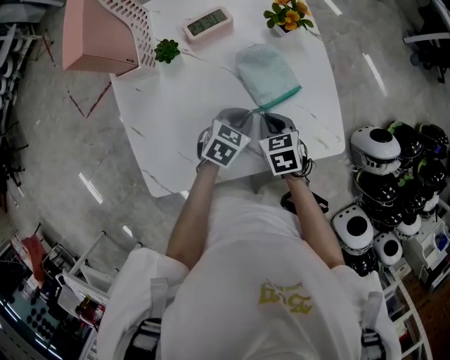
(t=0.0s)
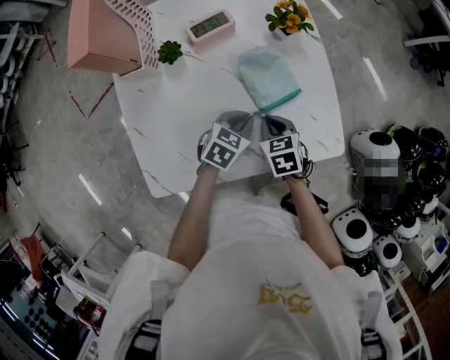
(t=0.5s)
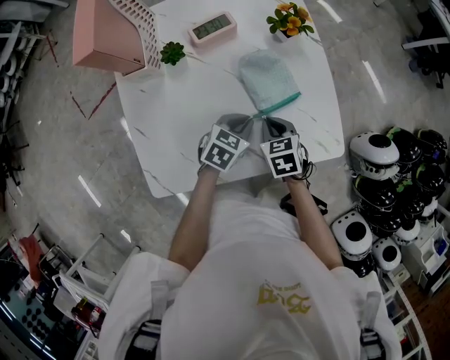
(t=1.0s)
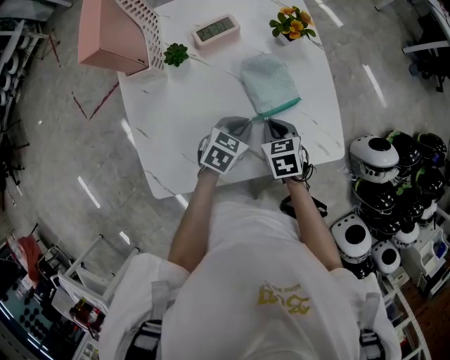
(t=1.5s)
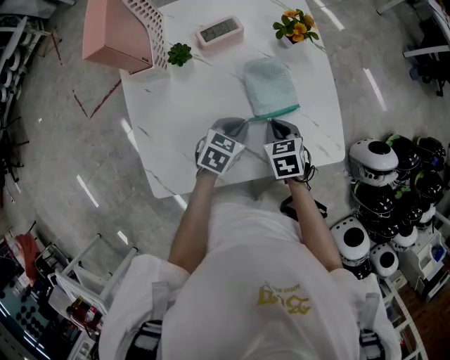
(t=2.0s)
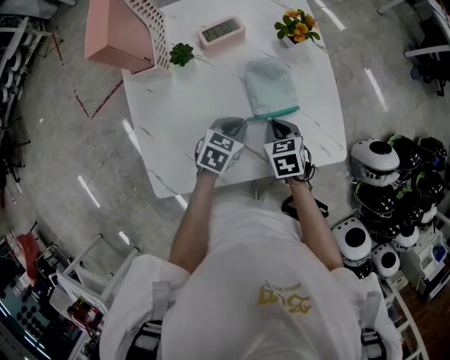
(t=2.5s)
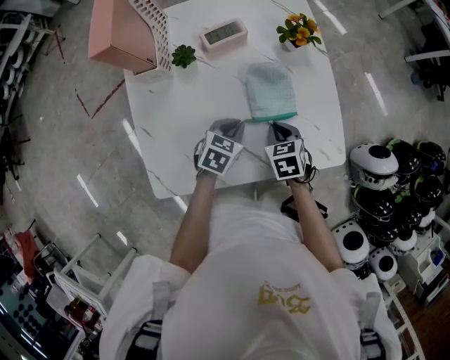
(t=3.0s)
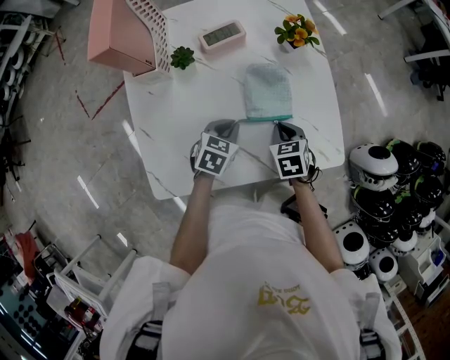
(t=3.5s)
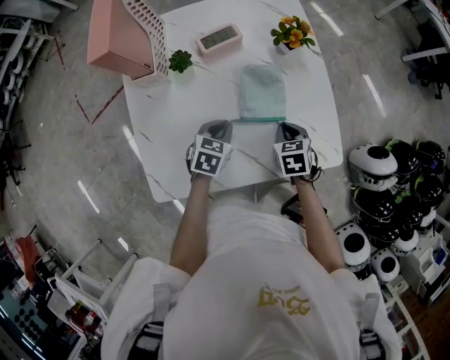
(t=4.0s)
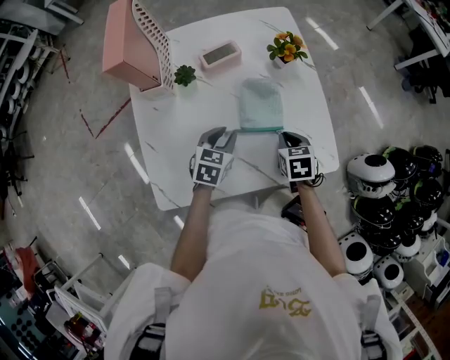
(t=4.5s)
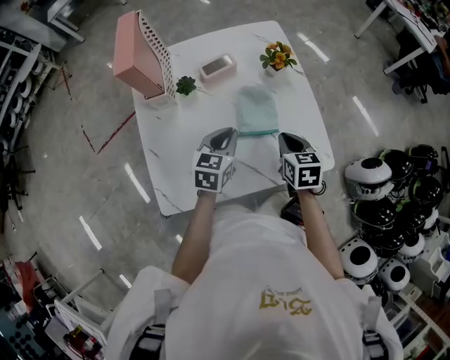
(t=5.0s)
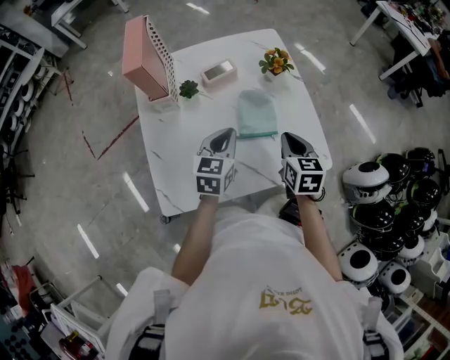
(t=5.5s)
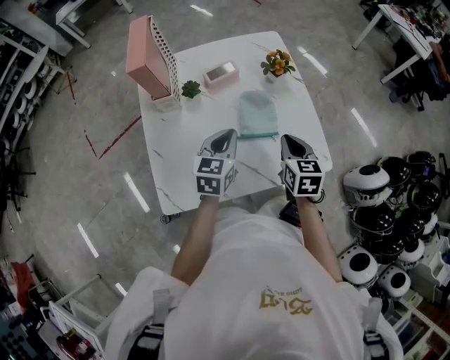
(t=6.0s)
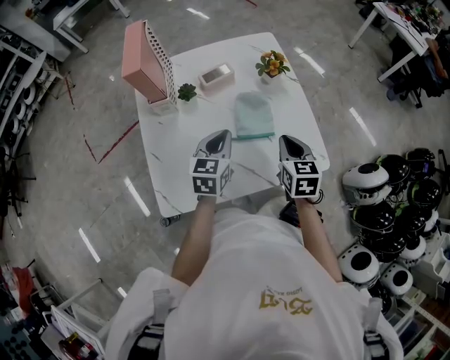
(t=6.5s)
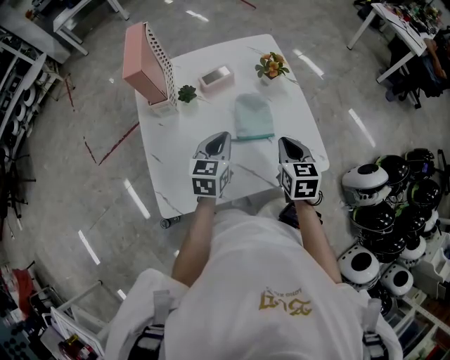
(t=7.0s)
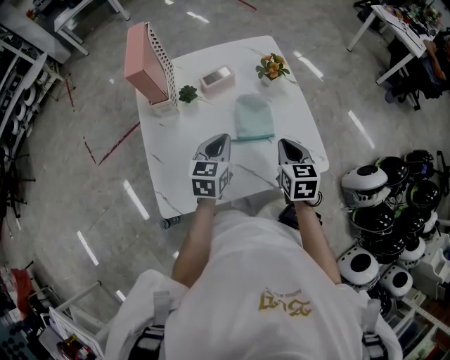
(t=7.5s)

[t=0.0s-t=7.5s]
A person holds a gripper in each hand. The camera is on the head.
t=0.0s to t=2.0s: The grippers stay close to where they were, moving slightly.
t=2.0s to t=4.0s: The grippers move only a little.
t=4.0s to t=5.5s: The two grippers go roughly 15 cm upward. The right gripper swivels approximately 30 degrees. The left gripper turns by roughly 30 degrees, and opens, then closes again.
t=5.5s to t=7.5s: The grippers make only small movements.

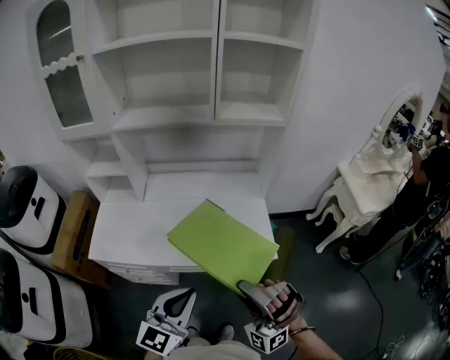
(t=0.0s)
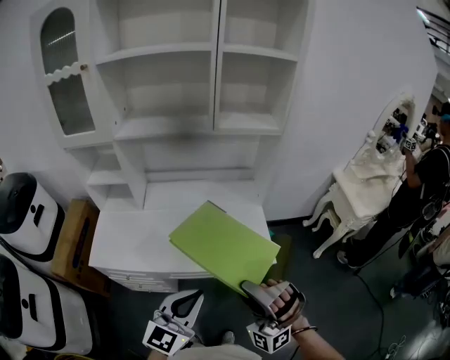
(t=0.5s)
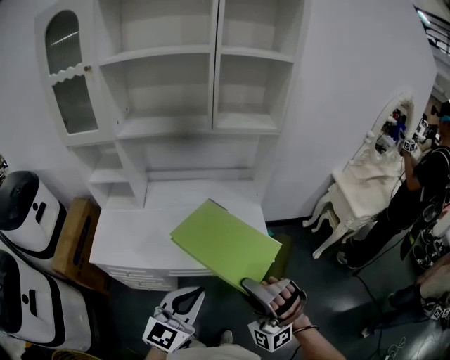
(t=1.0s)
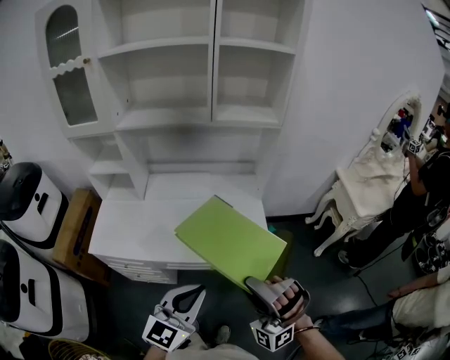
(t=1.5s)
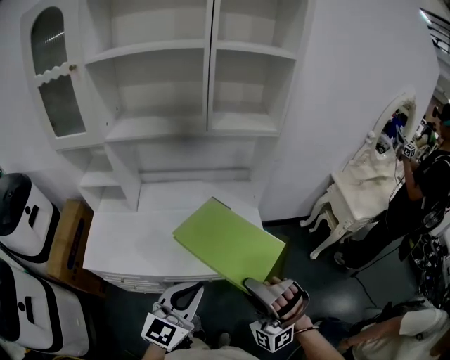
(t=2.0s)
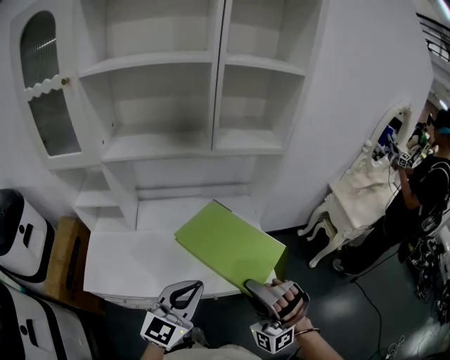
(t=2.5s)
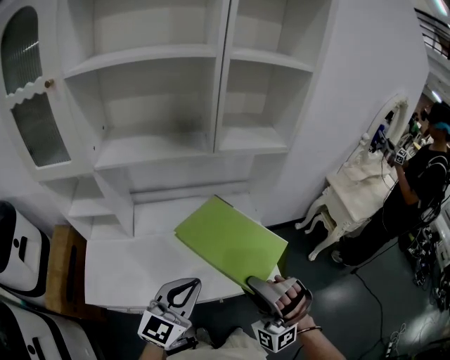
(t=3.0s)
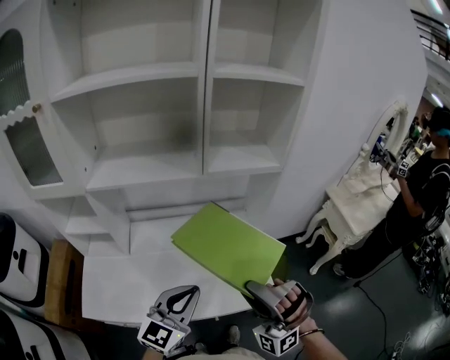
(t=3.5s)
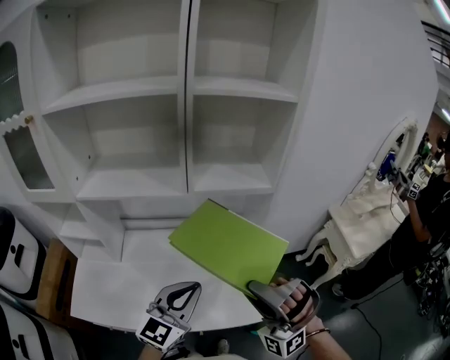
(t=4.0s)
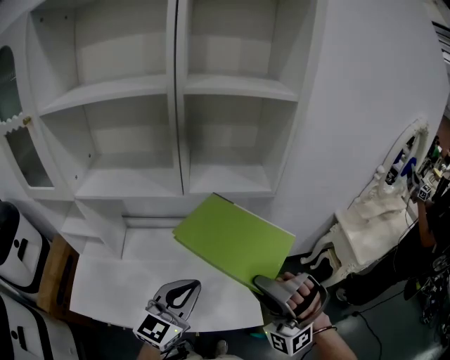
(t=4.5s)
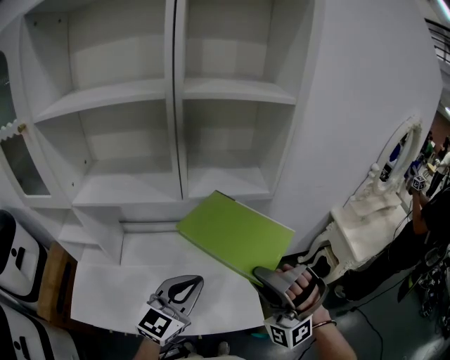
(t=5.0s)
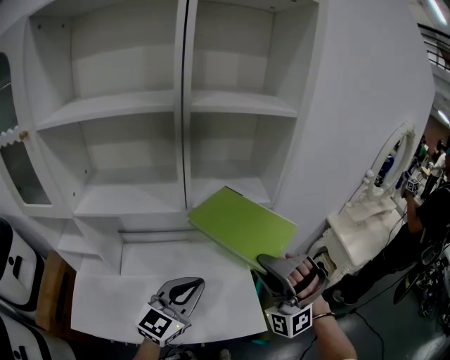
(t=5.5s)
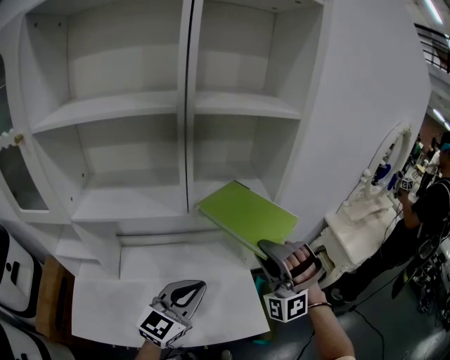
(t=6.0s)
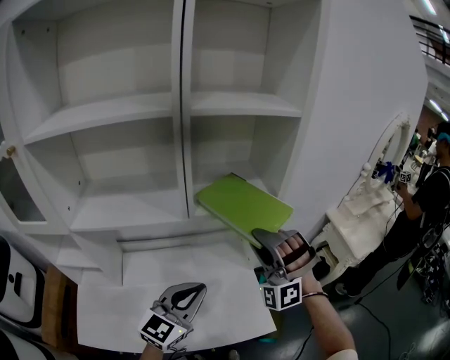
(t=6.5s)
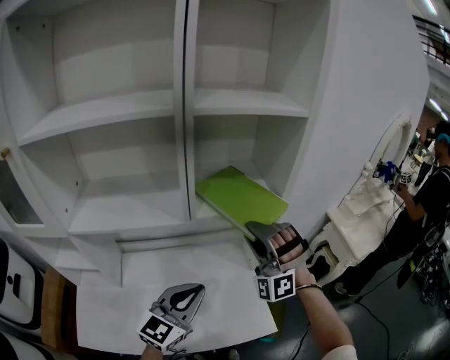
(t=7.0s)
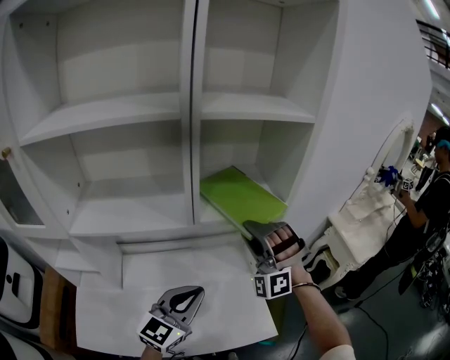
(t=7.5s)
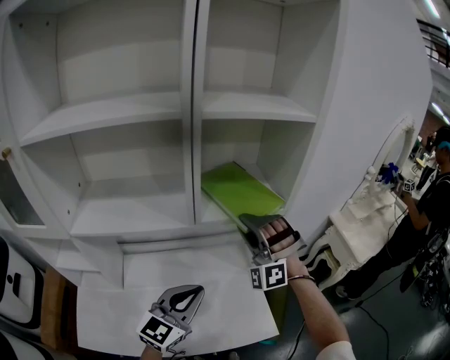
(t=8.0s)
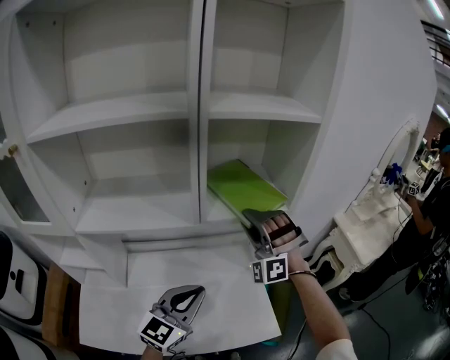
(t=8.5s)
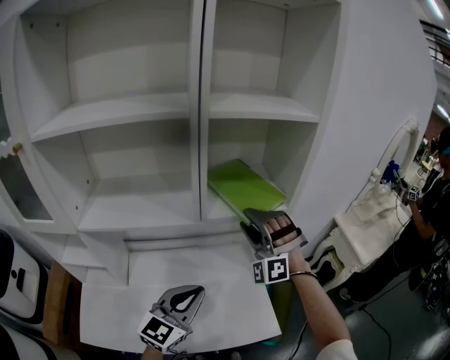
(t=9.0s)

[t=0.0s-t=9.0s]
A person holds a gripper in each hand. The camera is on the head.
t=0.0s to t=2.0s: The left gripper moves roughly 5 cm.
t=2.0s to t=4.5s: The left gripper moves some 25 cm.
t=4.5s to t=7.0s: The left gripper moves about 10 cm.

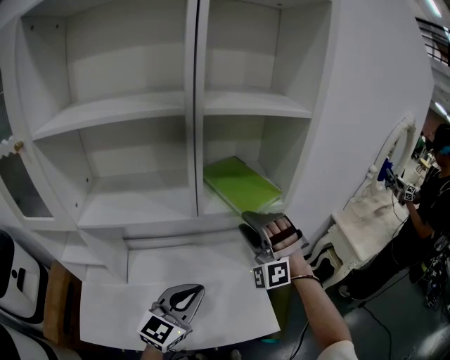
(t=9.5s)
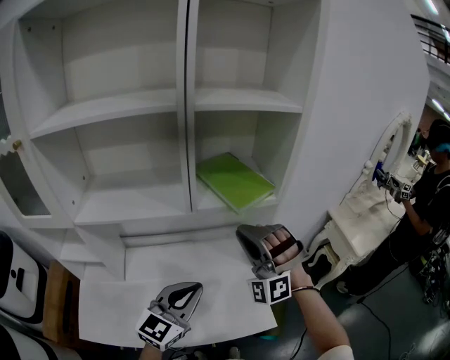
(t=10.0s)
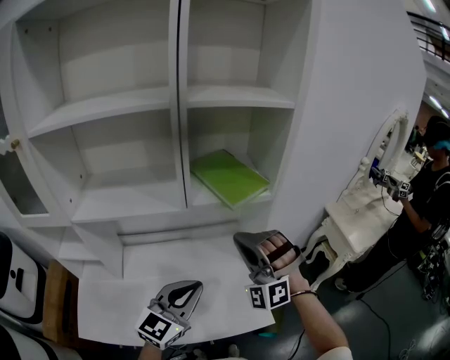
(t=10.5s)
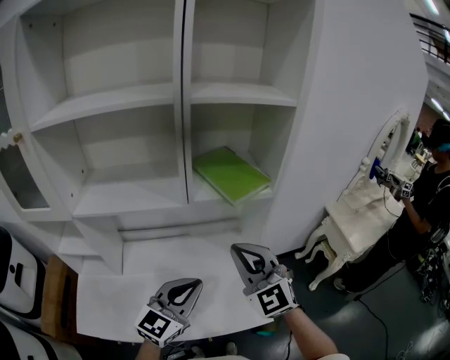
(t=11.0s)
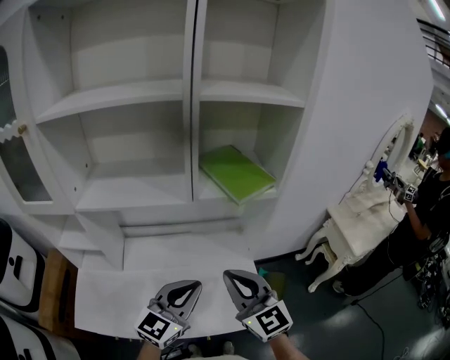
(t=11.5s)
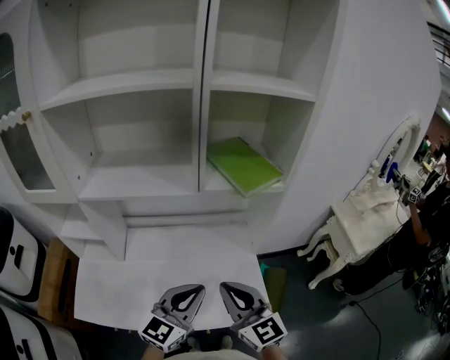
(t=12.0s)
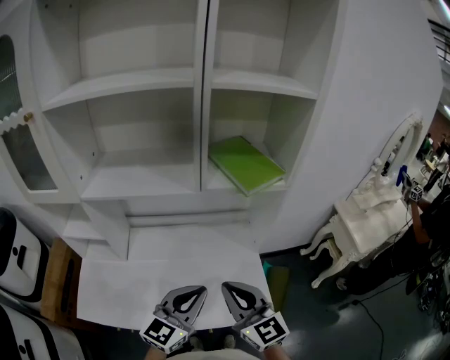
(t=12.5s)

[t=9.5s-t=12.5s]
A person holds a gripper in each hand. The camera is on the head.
t=11.0s to t=12.5s: The left gripper moves some 5 cm.

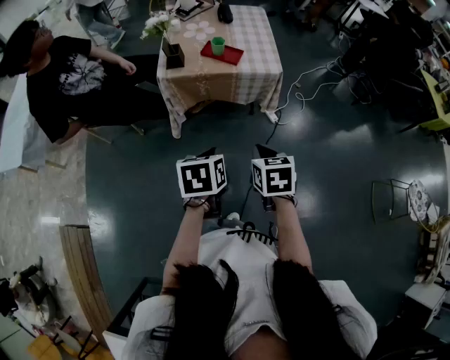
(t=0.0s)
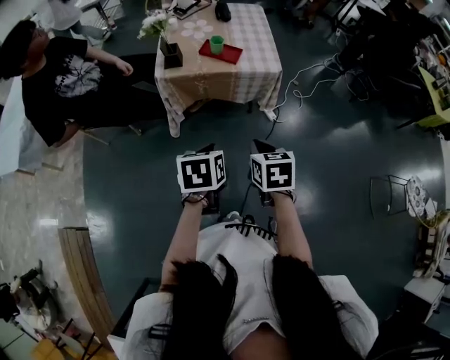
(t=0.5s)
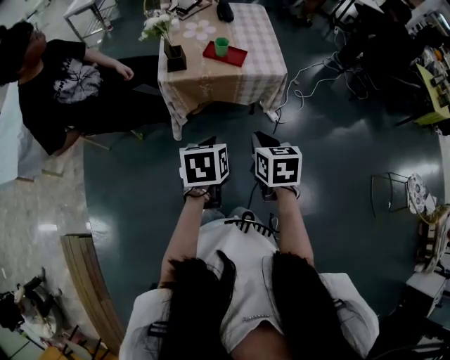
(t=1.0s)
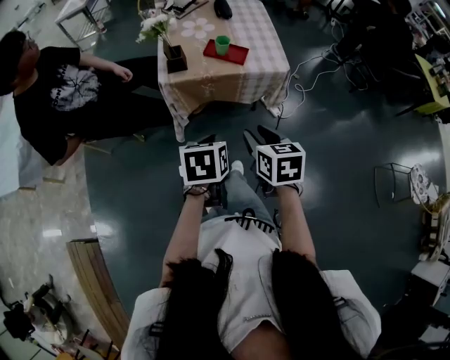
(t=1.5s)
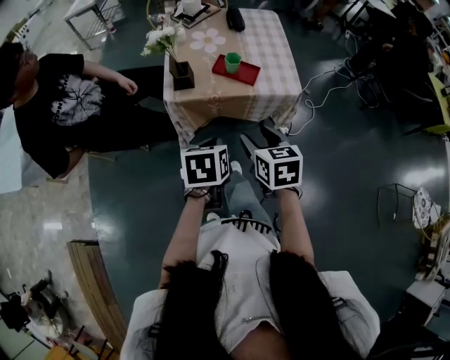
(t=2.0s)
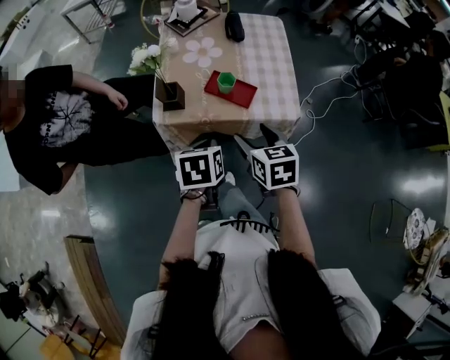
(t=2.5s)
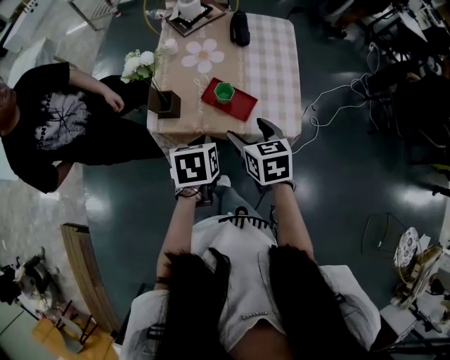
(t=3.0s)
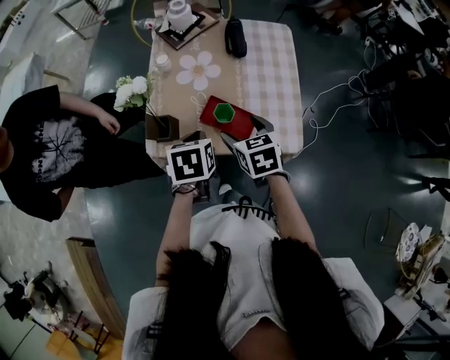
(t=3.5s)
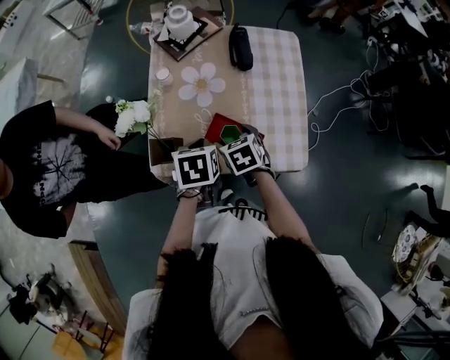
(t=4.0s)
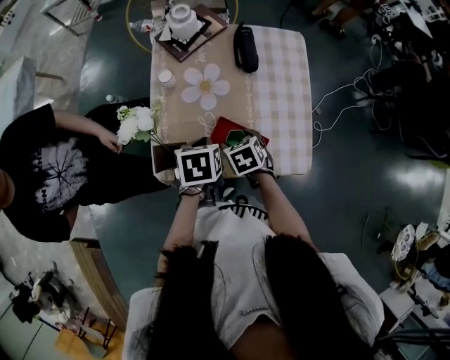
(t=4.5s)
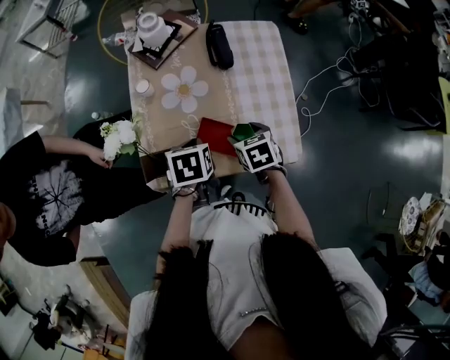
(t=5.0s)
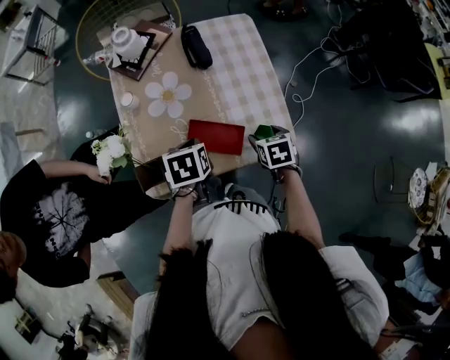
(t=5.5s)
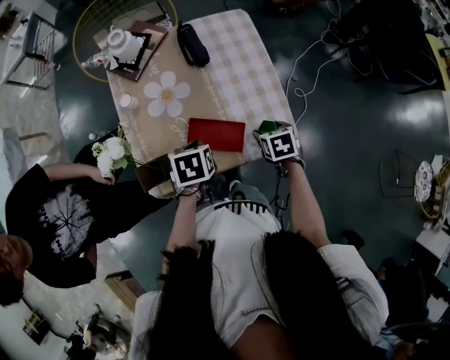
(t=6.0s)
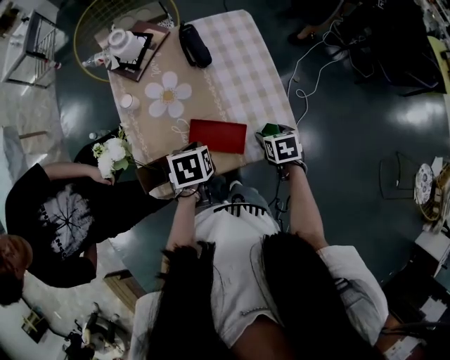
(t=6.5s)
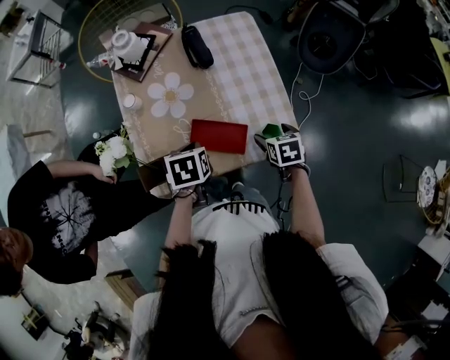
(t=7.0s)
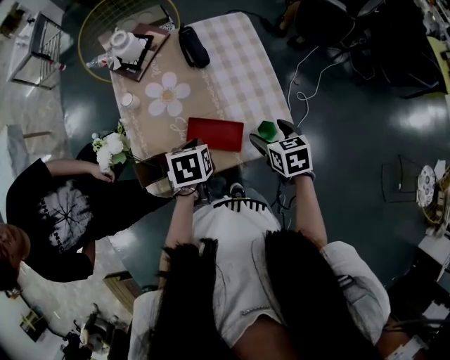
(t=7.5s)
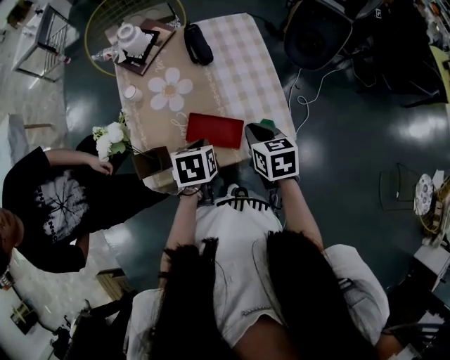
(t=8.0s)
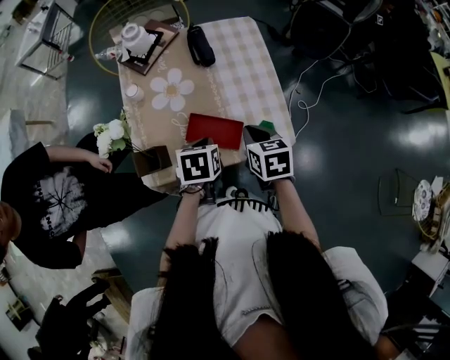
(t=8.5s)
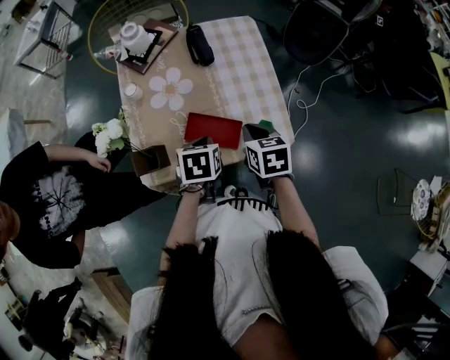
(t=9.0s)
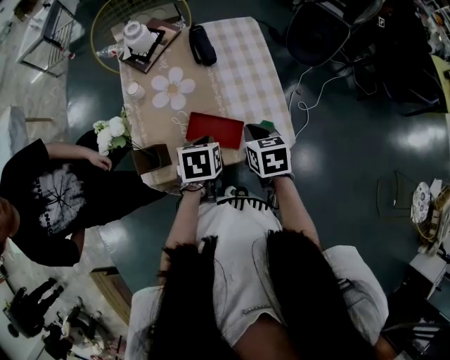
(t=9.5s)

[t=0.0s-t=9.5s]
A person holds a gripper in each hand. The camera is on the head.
t=0.0s to t=2.0s: The grippers both shift forward and to the left by about 20 cm. The right gripper opens up.
t=2.0s to t=4.0s: The right gripper is displaced forward and downward by some 35 cm, rotates about 30 degrees, and opens up; the left gripper heads forward, covering approximately 30 cm.
t=4.0s to t=5.5s: The right gripper travels to the right by approximately 20 cm, and swivels roughly 30 degrees. Meanwhile the left gripper changes place by about 5 cm.
t=5.5s to t=7.5s: The right gripper shifts roughly 5 cm upward.
t=7.5s to t=9.5s: The right gripper moves to the left, roughly 5 cm, and closes its fingers.
